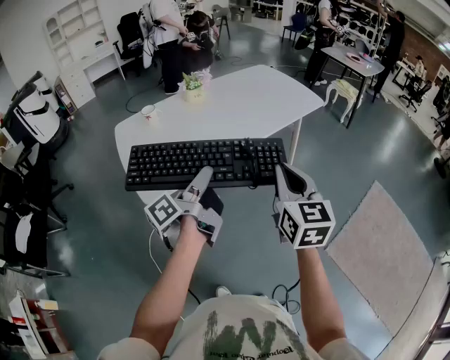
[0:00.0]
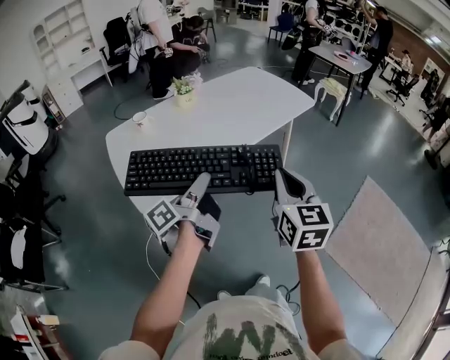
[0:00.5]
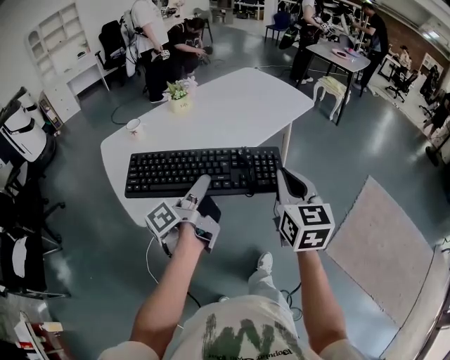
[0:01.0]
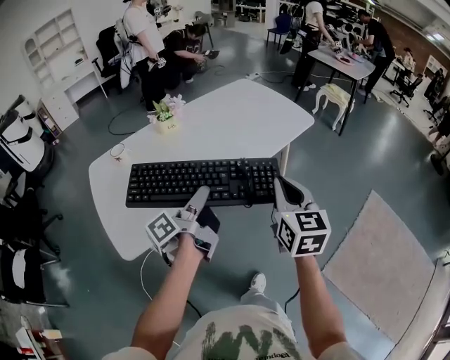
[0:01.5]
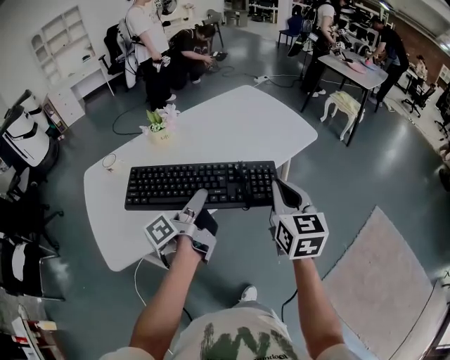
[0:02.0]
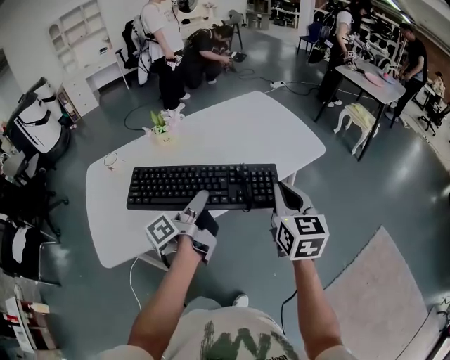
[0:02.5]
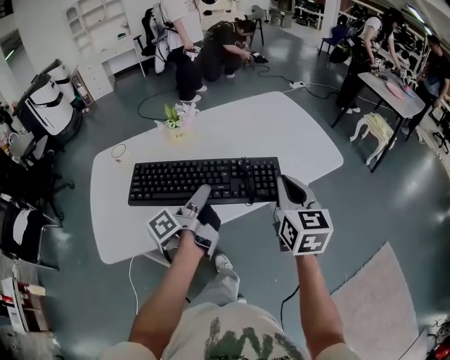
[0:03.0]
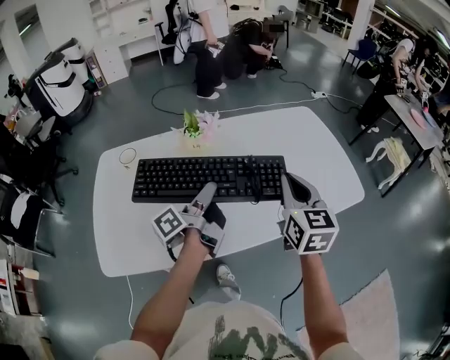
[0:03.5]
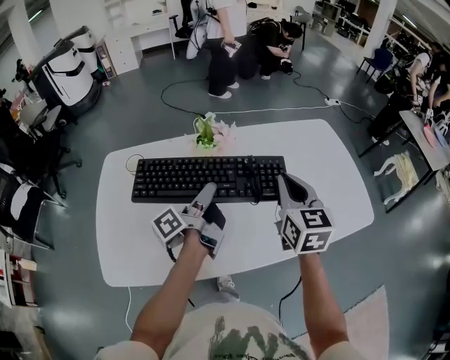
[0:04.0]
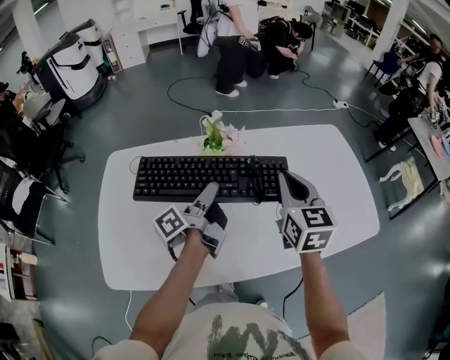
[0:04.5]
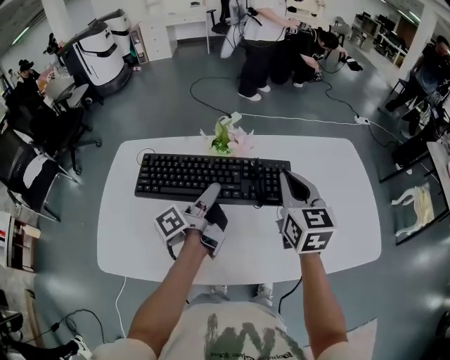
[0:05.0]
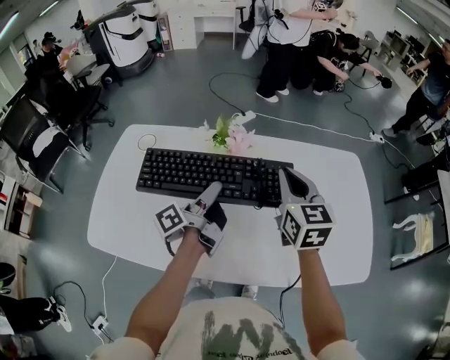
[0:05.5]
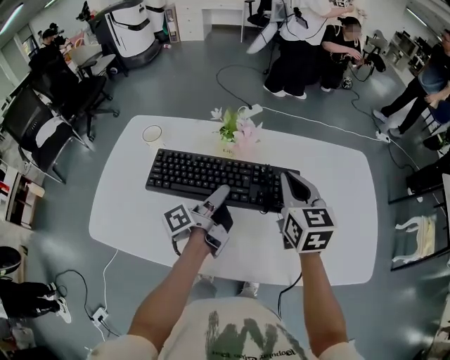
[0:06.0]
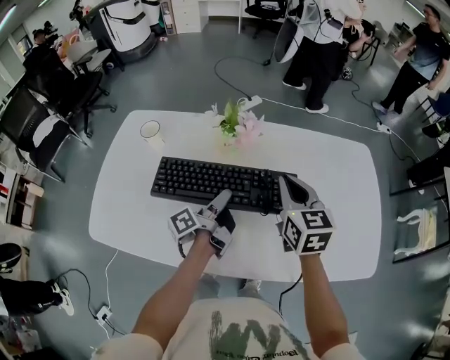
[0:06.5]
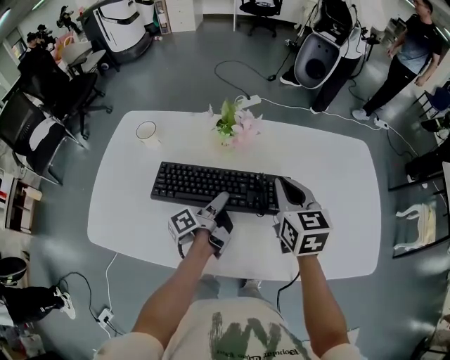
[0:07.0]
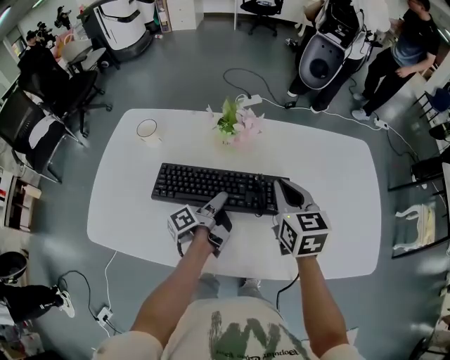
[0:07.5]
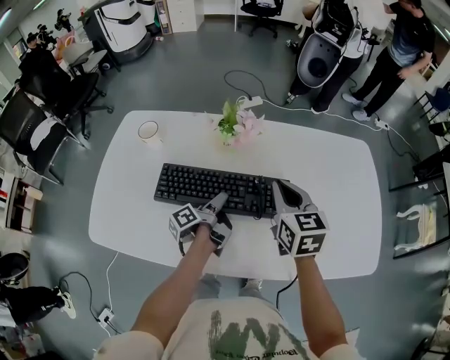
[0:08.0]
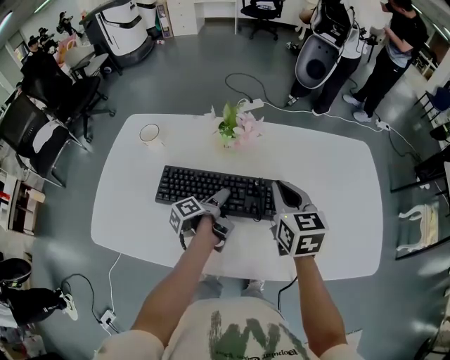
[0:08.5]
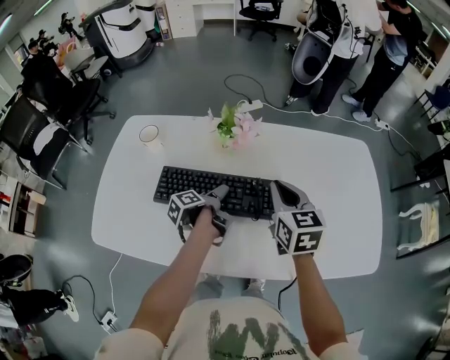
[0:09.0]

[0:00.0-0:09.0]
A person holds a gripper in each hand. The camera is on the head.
0:00.0 to 0:02.0: The right gripper moves approximately 25 cm.
0:02.0 to 0:04.5: The right gripper changes place by some 35 cm, and changes its angle by about 30 degrees.
0:04.5 to 0:07.0: The right gripper is displaced downward by some 5 cm, and turns by some 20 degrees.

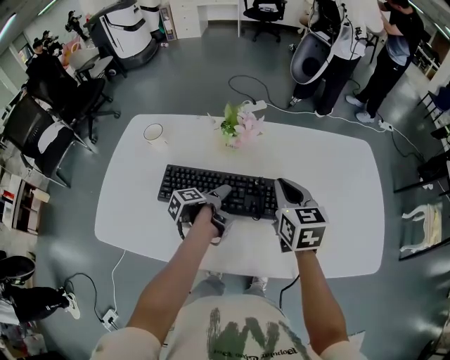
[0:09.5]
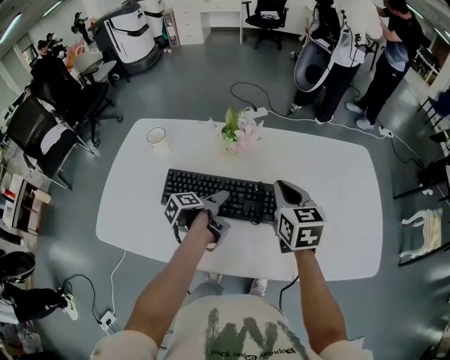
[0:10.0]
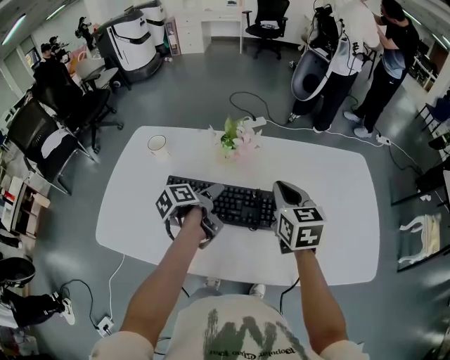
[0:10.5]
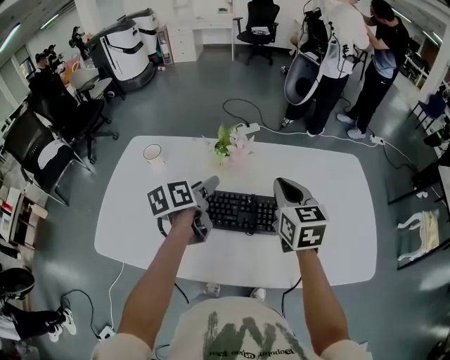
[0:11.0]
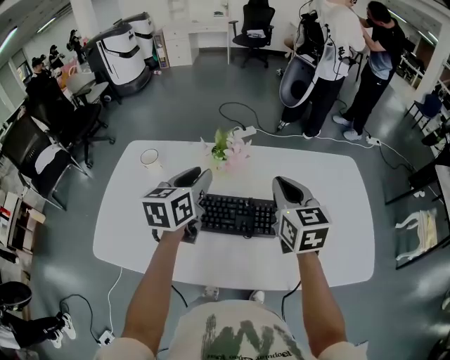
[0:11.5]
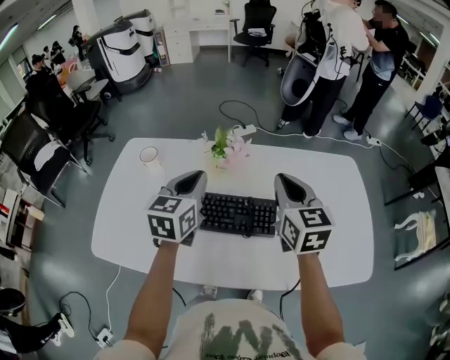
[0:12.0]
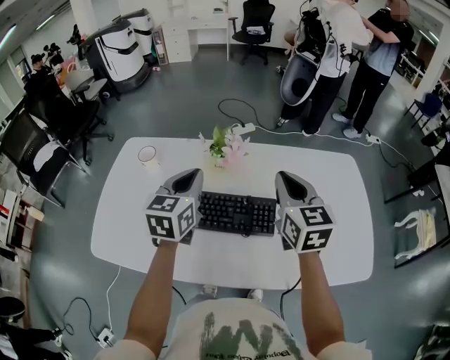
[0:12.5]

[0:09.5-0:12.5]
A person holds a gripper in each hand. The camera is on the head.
0:09.5 to 0:11.0: The right gripper goes roughly 5 cm upward.

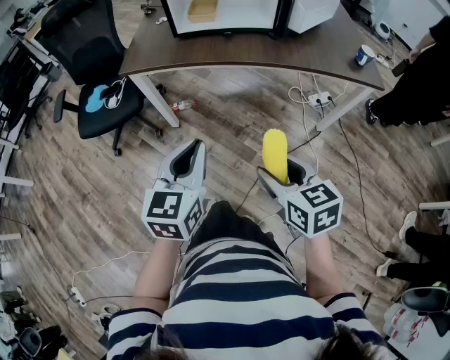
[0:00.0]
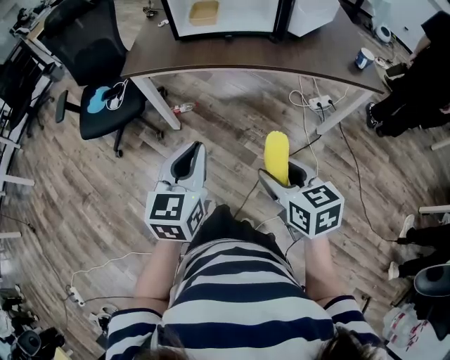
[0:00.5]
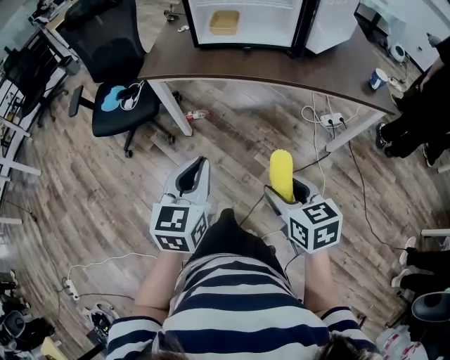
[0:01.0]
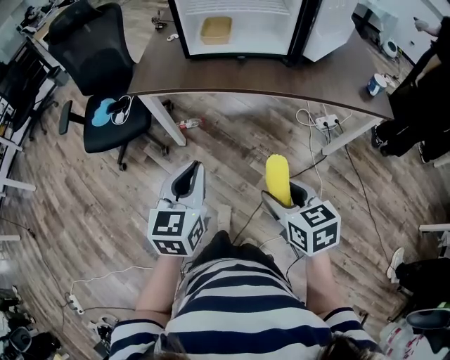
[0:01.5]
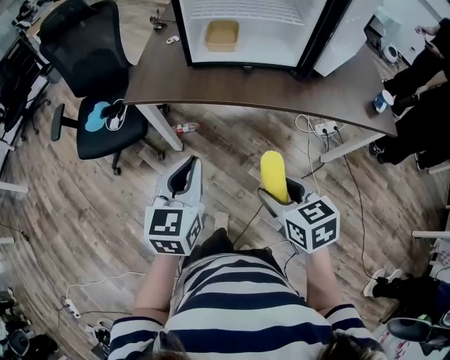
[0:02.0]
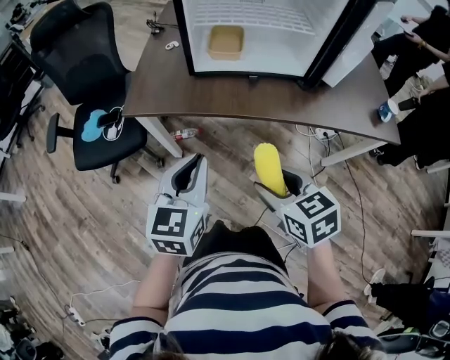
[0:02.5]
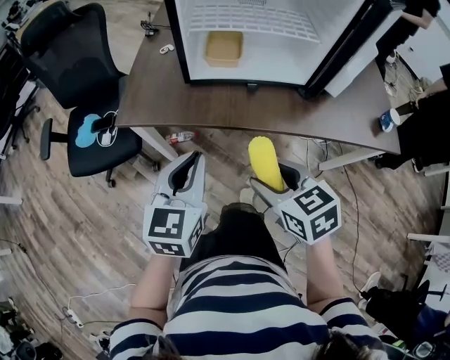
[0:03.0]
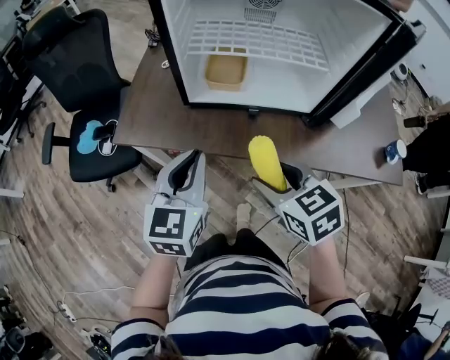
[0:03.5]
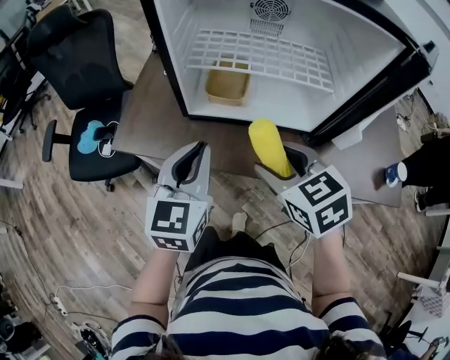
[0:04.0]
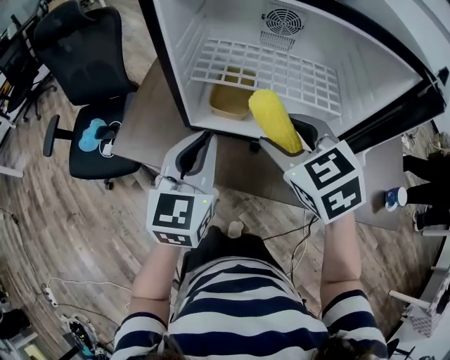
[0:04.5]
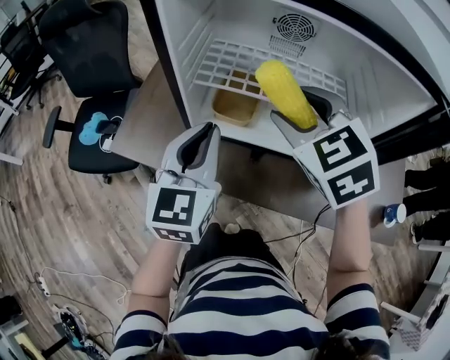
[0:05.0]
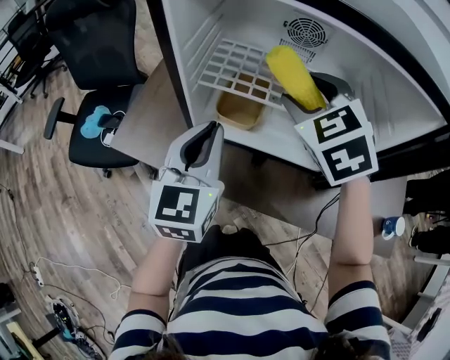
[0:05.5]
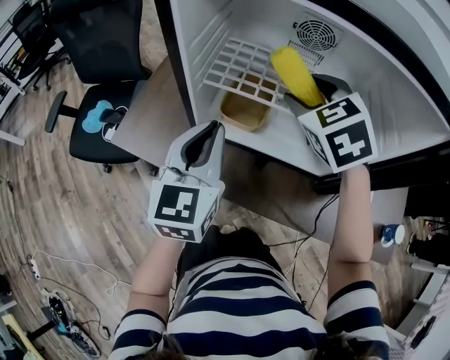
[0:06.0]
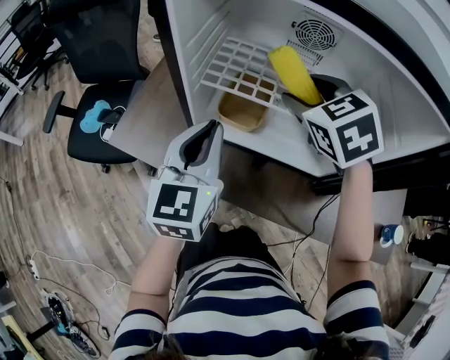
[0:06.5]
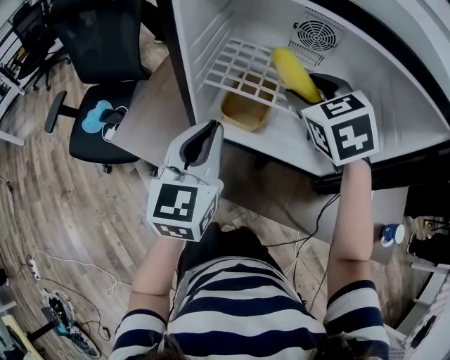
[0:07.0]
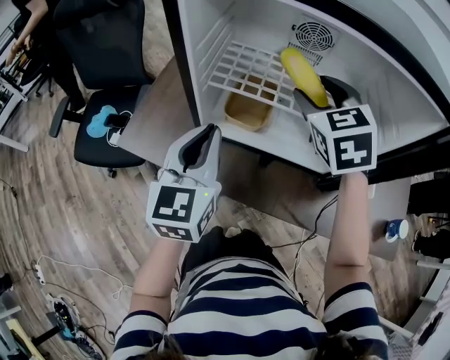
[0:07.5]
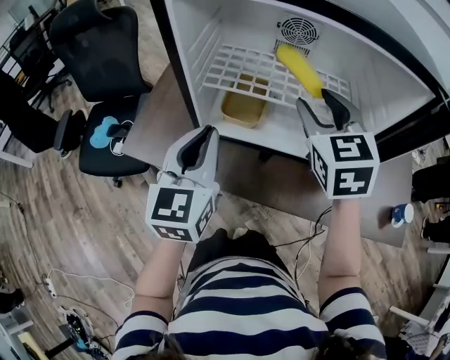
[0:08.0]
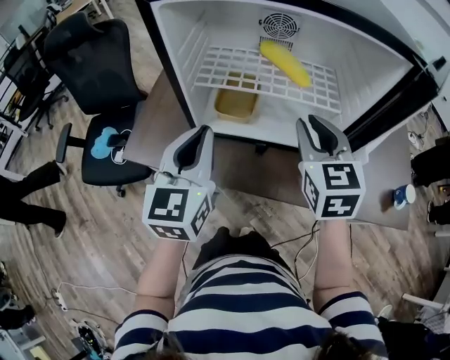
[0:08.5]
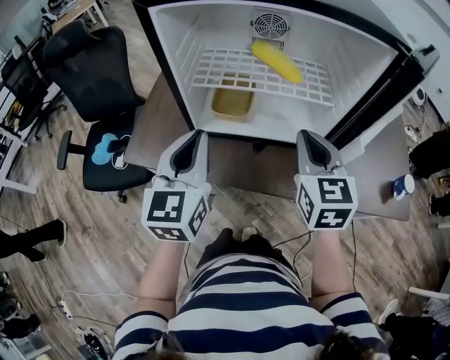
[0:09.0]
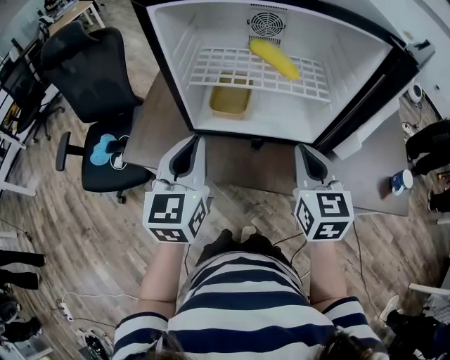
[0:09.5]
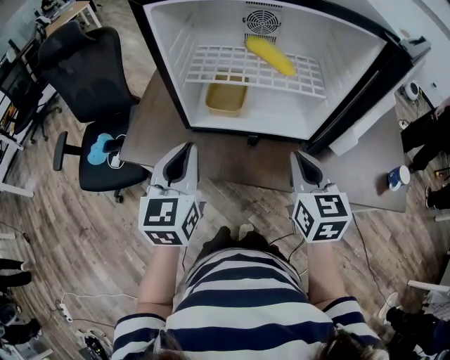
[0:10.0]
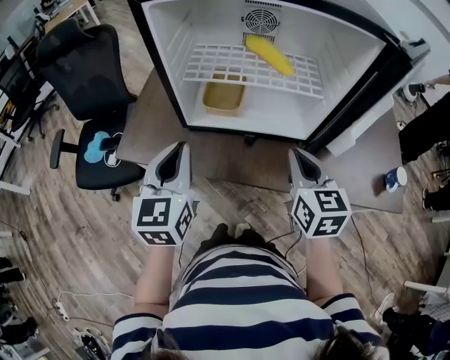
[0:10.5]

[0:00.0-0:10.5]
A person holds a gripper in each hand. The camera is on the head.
0:00.0 to 0:02.0: The two grippers go approximately 15 cm forward.
0:02.0 to 0:04.0: Both grippers move forward, some 30 cm.
0:04.0 to 0:06.5: The left gripper travels forward by approximately 10 cm. Meanwhile the right gripper goes approximately 25 cm forward, and swivels about 20 degrees.
0:06.5 to 0:08.5: The left gripper shifts approximately 5 cm backward. Meanwhile the right gripper shifts some 15 cm backward and to the right, changes its angle by some 30 degrees, and closes its fingers.
0:08.5 to 0:10.5: The left gripper shifts by approximately 5 cm. Meanwhile the right gripper heads backward and downward, covering about 10 cm.

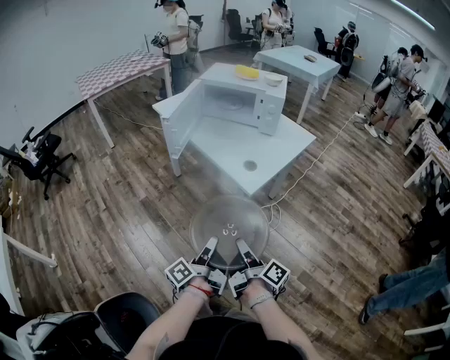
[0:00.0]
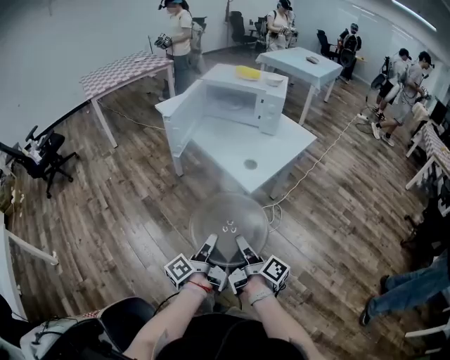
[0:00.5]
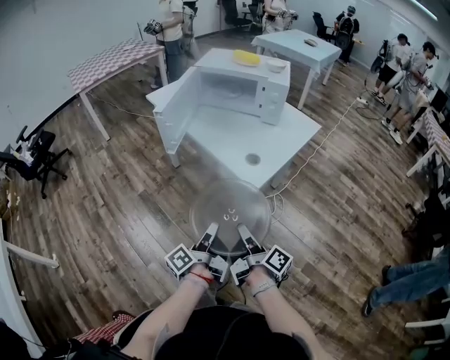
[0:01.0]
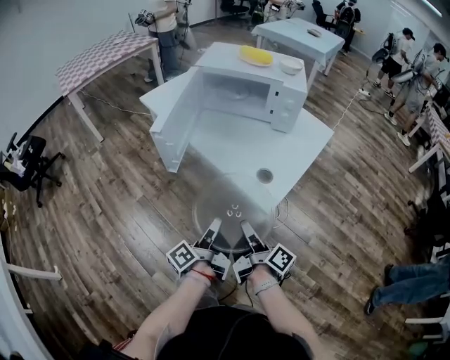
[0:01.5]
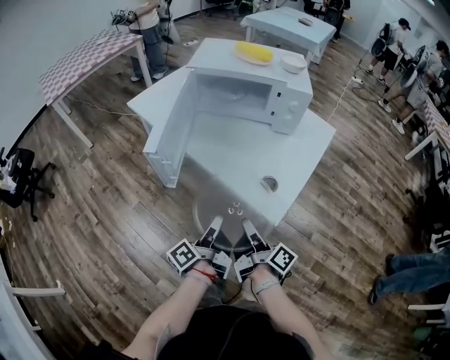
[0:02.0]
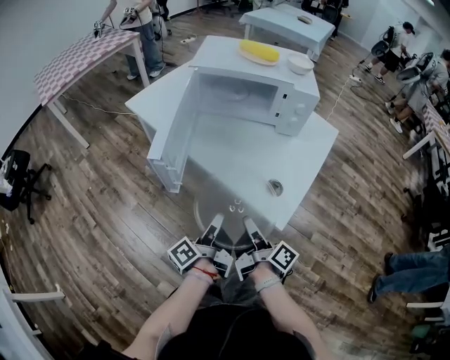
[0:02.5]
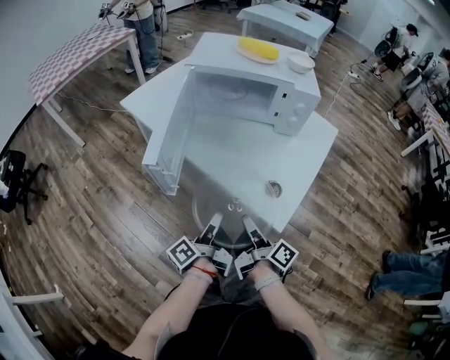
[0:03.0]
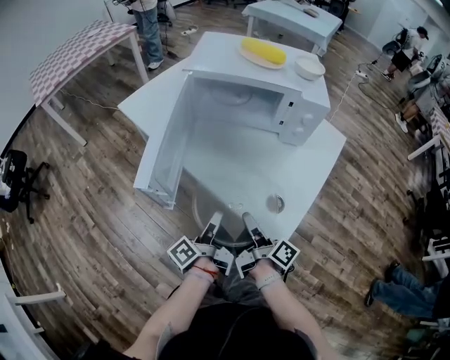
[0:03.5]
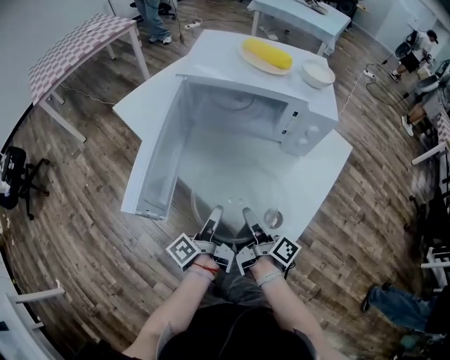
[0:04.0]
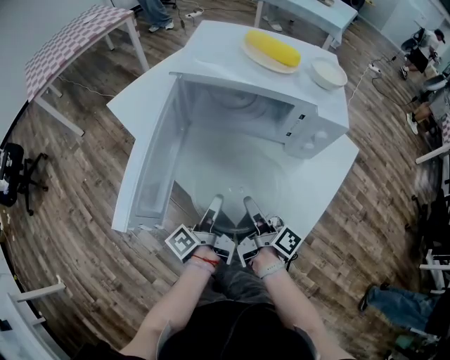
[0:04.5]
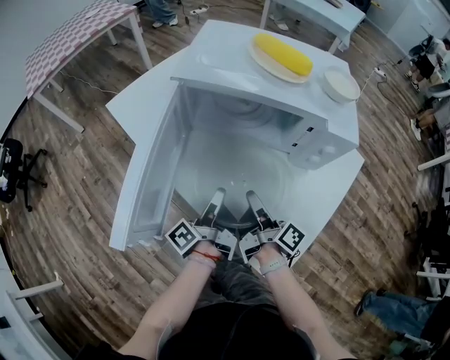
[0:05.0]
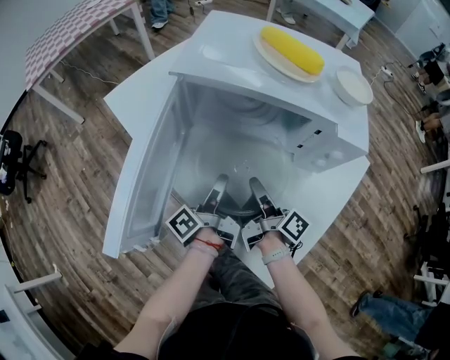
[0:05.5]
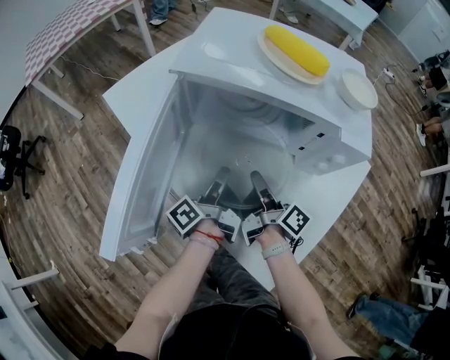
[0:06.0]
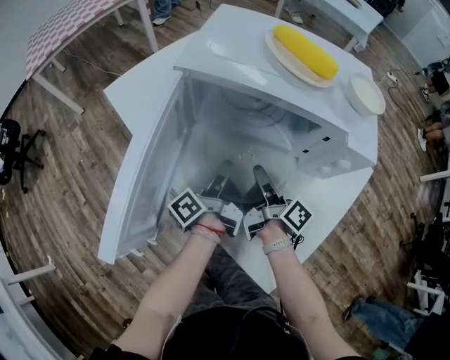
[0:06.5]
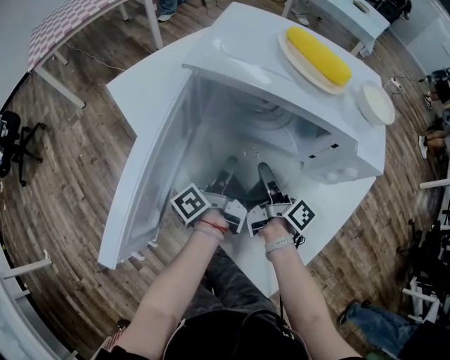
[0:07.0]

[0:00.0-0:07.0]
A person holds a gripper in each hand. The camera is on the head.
0:00.0 to 0:02.0: The right gripper moves approximately 25 cm.
0:02.0 to 0:03.5: The right gripper ends up some 10 cm from where it was.
0:03.5 to 0:05.0: The right gripper shifts by roughly 15 cm.
0:05.0 to 0:07.0: The right gripper ends up about 10 cm from where it was.
